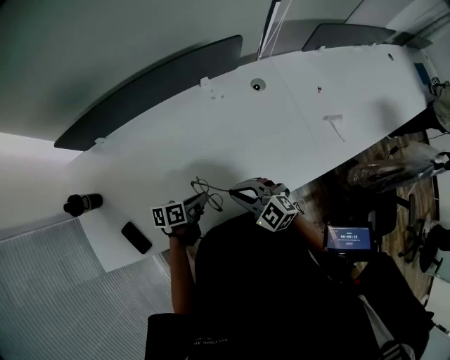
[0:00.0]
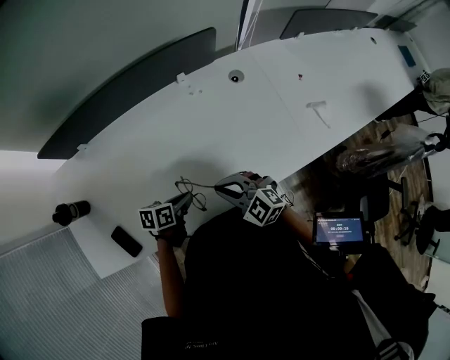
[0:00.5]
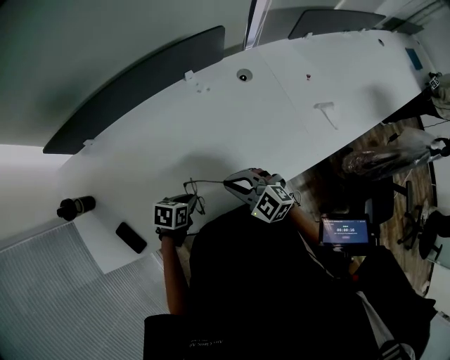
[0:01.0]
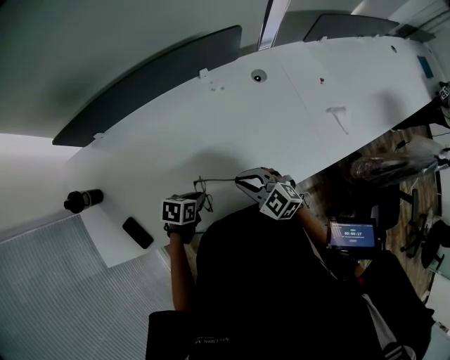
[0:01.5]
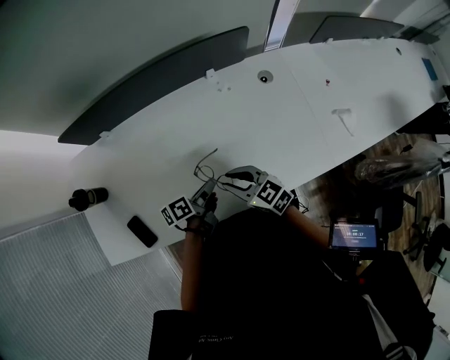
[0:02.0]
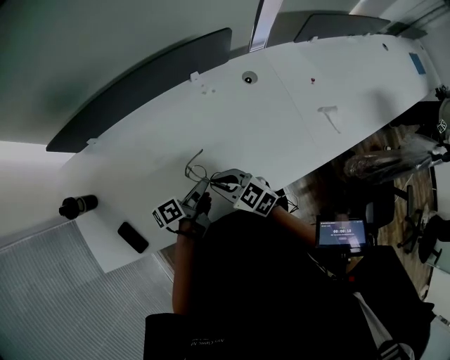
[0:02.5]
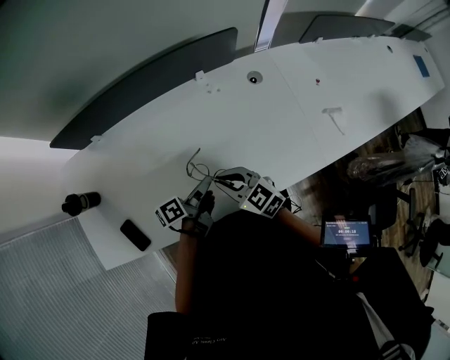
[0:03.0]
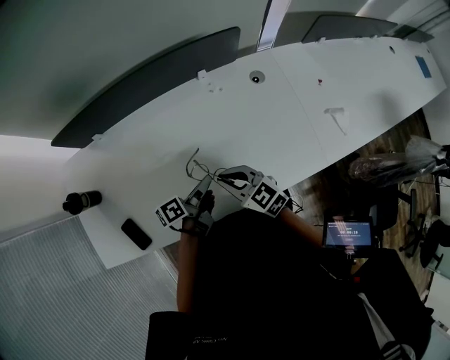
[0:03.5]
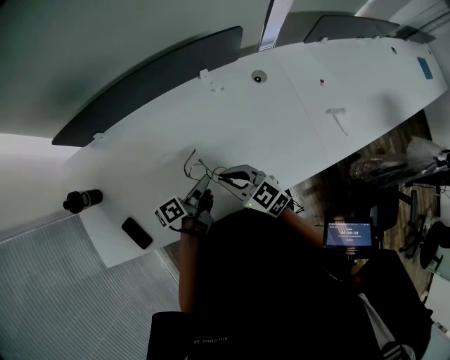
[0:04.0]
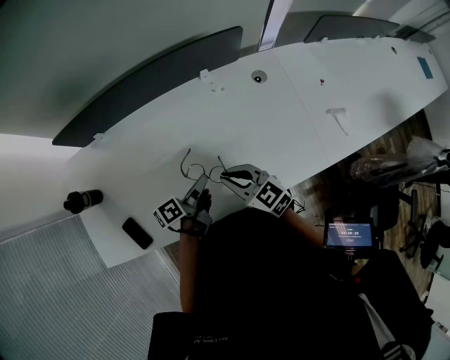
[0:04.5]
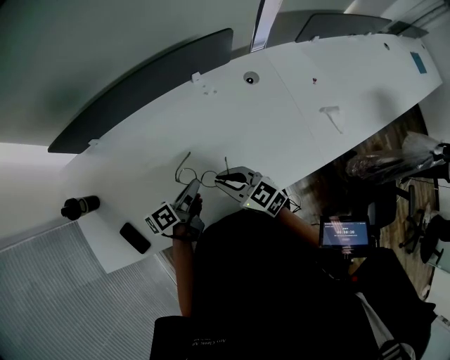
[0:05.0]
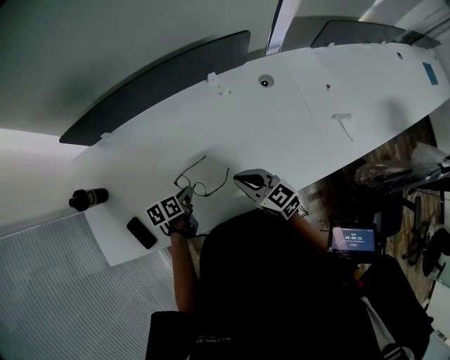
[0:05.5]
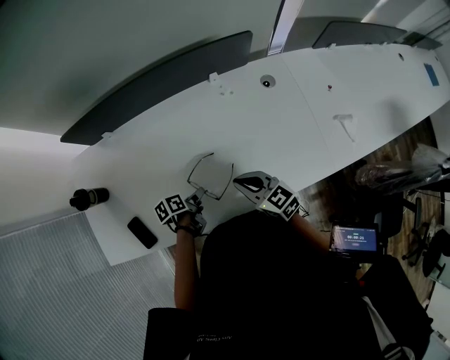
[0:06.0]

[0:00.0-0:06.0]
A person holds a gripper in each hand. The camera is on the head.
0:00.0 to 0:02.0: The right gripper rotates roughly 30 degrees.

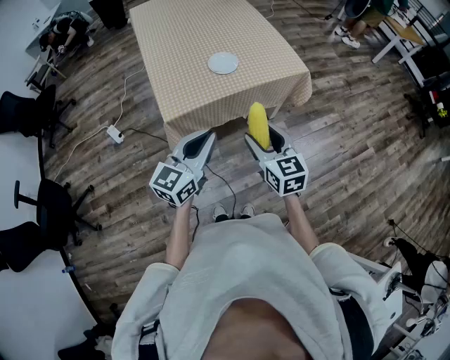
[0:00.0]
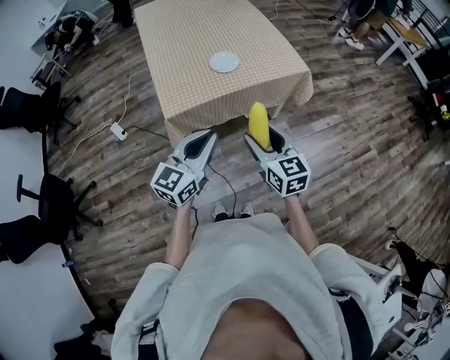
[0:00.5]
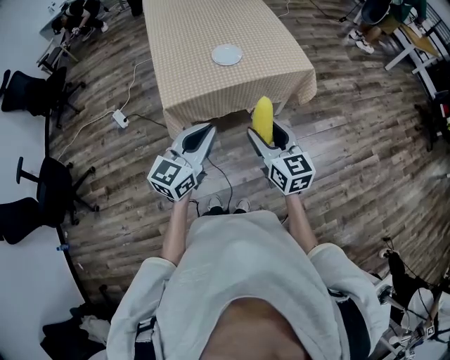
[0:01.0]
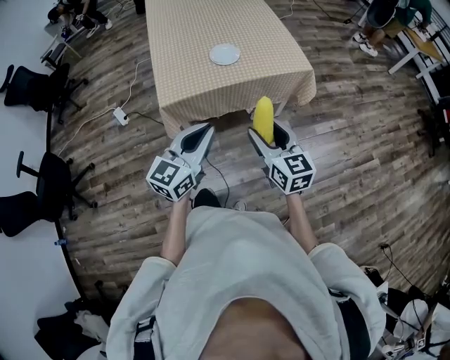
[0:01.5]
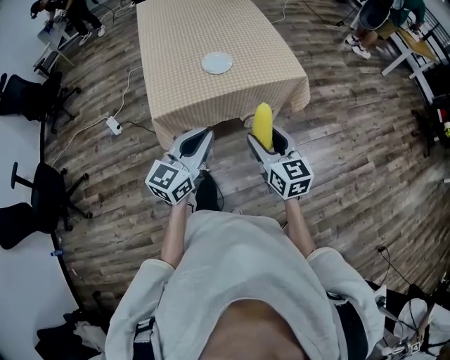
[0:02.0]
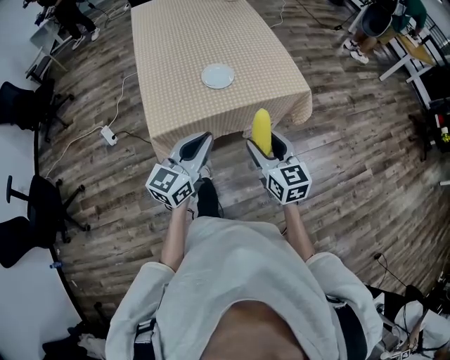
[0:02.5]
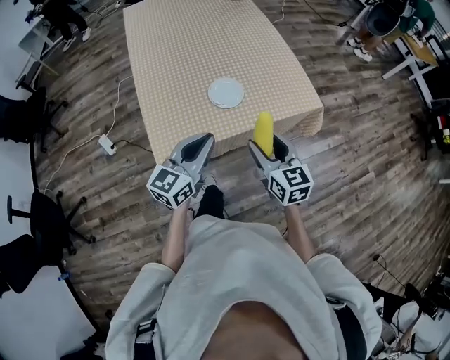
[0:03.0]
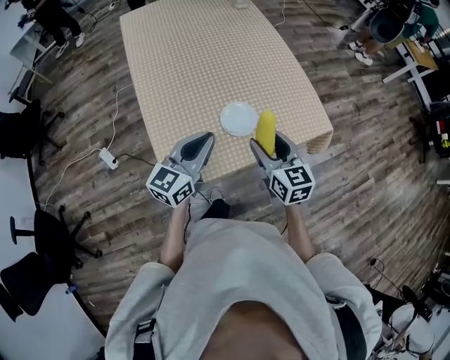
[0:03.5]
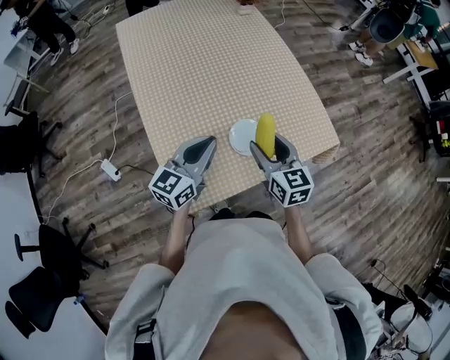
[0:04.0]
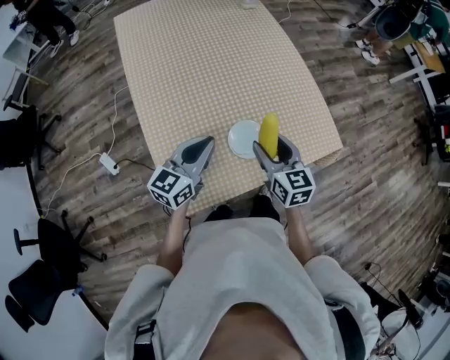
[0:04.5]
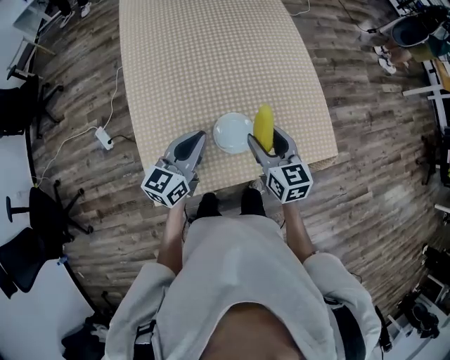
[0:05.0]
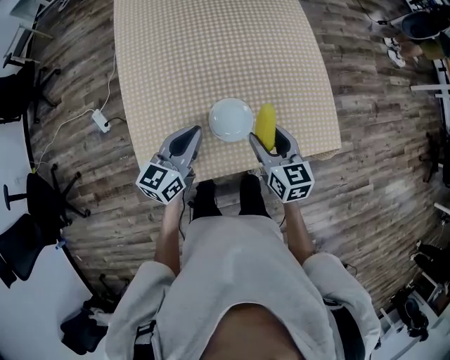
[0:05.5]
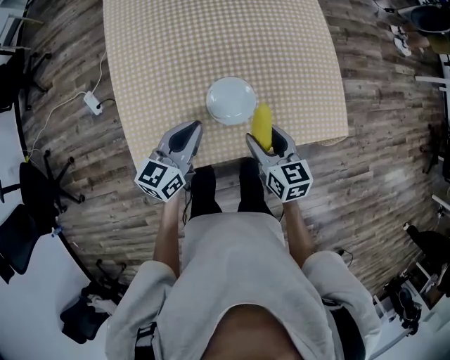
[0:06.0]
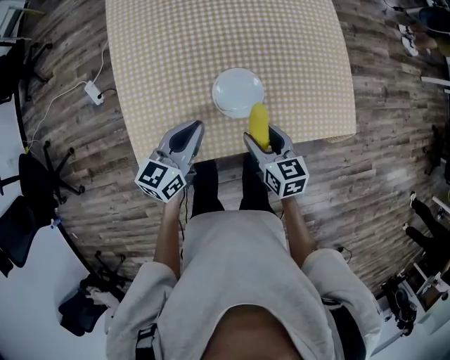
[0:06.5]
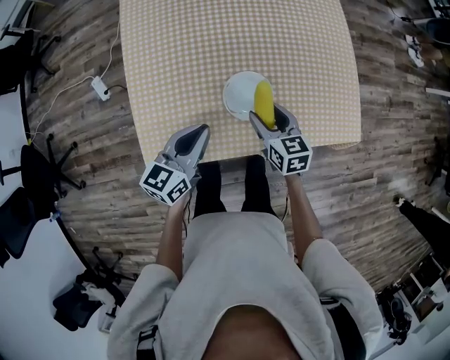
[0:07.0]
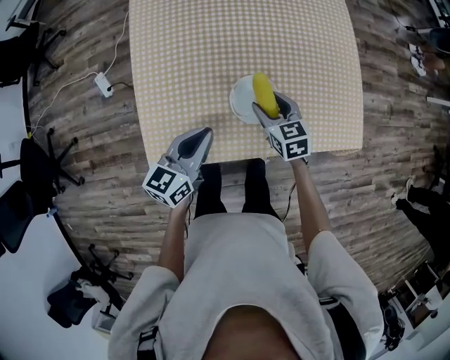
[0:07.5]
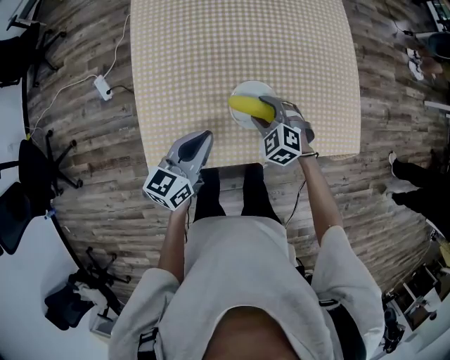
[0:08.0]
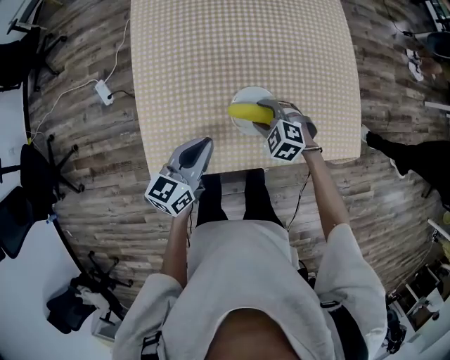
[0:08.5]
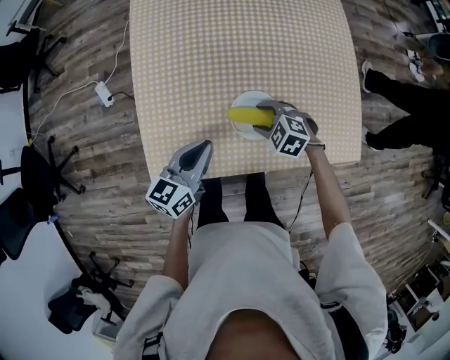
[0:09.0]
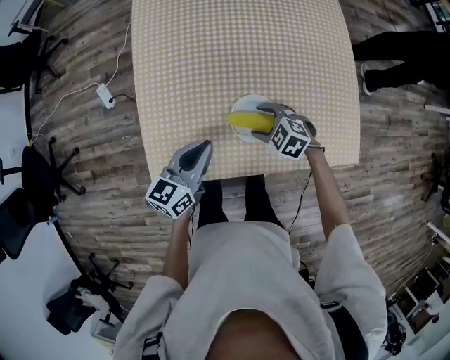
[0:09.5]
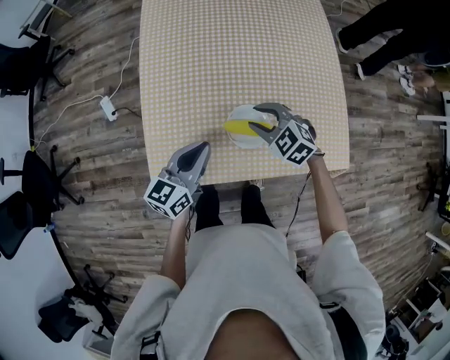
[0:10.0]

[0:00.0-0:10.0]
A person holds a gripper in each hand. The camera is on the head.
0:00.0 to 0:02.0: The grippers both shift to the right by about 10 cm.
0:02.0 to 0:04.0: The pair of grippers is taken forward and to the left, approximately 50 cm.
0:04.0 to 0:06.0: Both grippers travel together downward and to the right, about 15 cm. The right gripper turns by some 20 degrees. The left gripper swivels roughly 20 degrees.
0:06.0 to 0:08.0: The right gripper moves downward, forward and to the left, about 15 cm, and rotates around the line of its fingers by roughly 60 degrees, counterclockwise from behind.
0:08.0 to 0:10.0: The right gripper is displaced upward by about 10 cm.

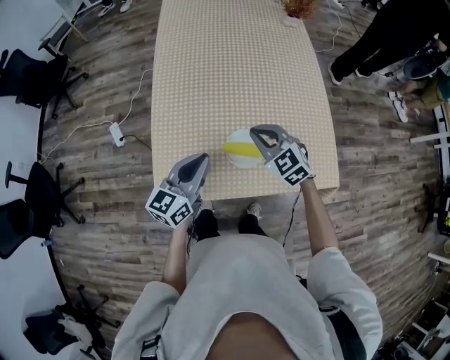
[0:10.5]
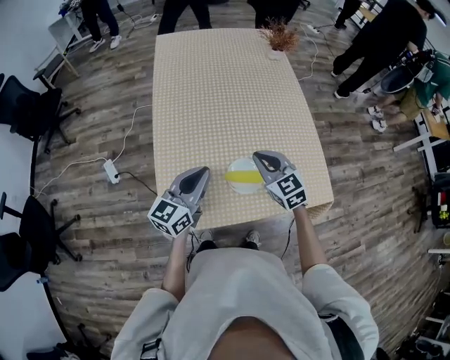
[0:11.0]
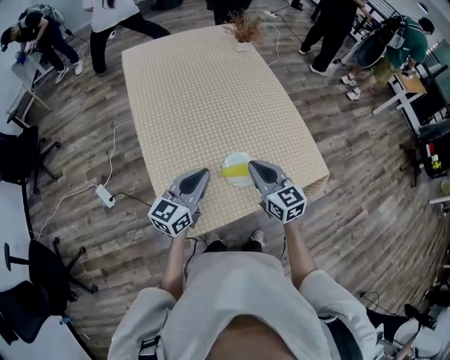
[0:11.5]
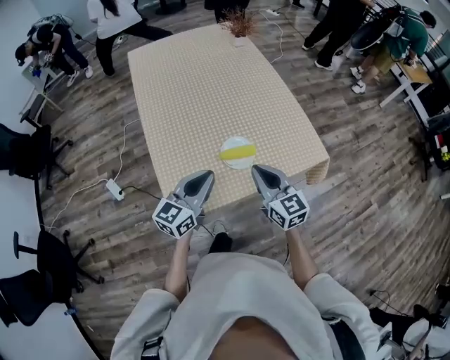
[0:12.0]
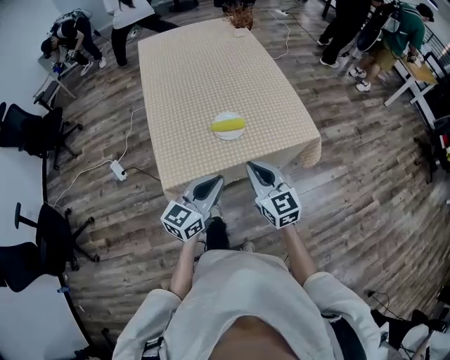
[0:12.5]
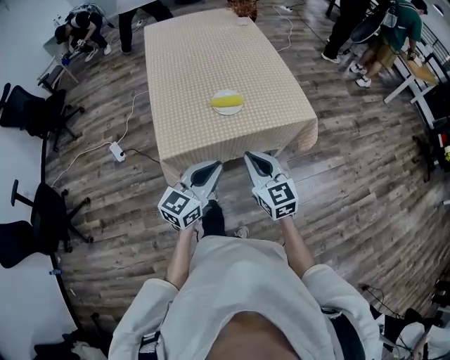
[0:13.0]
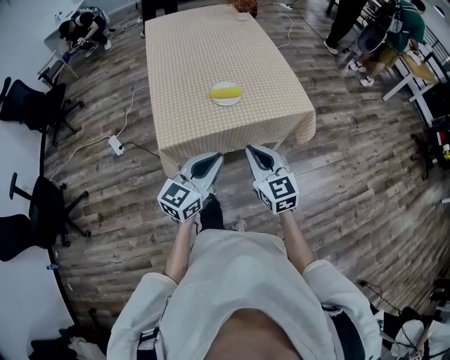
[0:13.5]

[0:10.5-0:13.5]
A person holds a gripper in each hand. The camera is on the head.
0:10.5 to 0:12.0: The right gripper heads backward and upward, covering about 20 cm, and swivels about 50 degrees. Meanwhile the left gripper moves backward, approximately 5 cm, and changes its angle by approximately 20 degrees.
0:12.0 to 0:13.5: The right gripper heads backward, covering about 25 cm. Meanwhile the left gripper heads backward and to the right, covering roughly 30 cm.

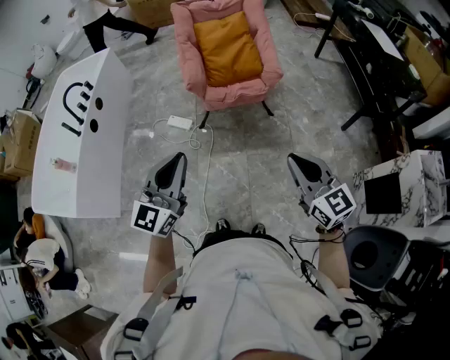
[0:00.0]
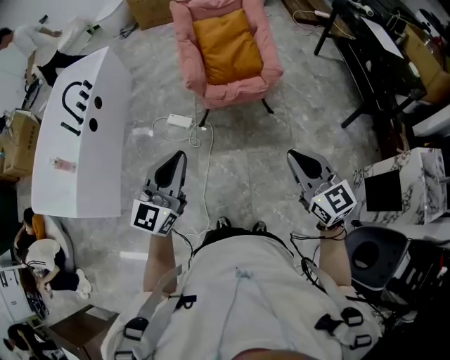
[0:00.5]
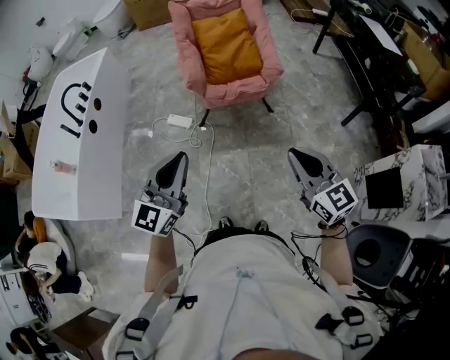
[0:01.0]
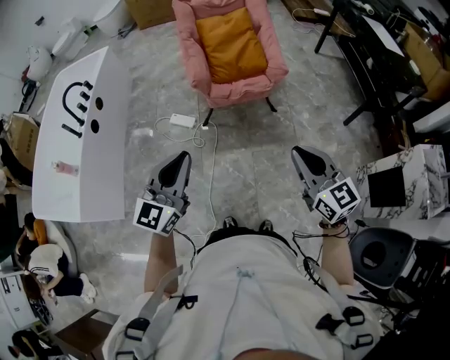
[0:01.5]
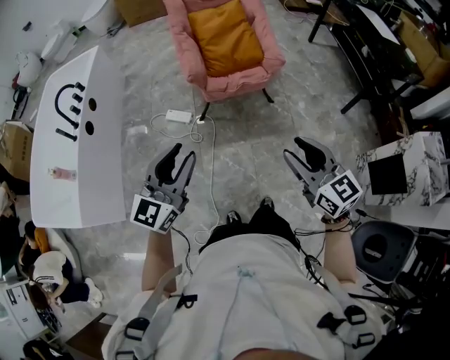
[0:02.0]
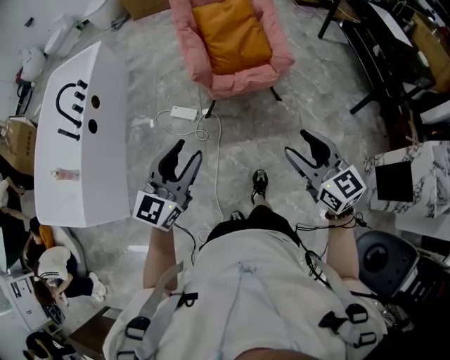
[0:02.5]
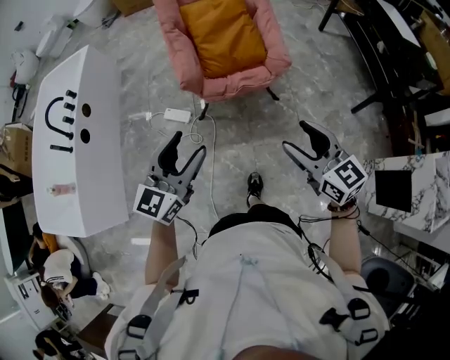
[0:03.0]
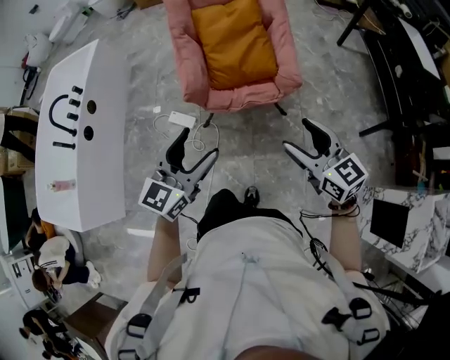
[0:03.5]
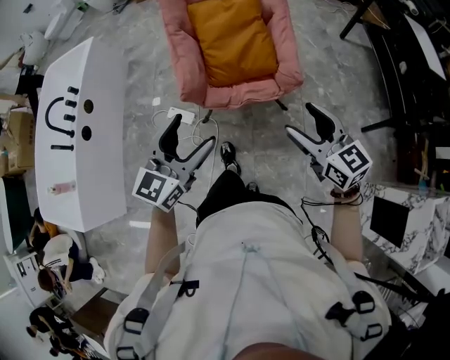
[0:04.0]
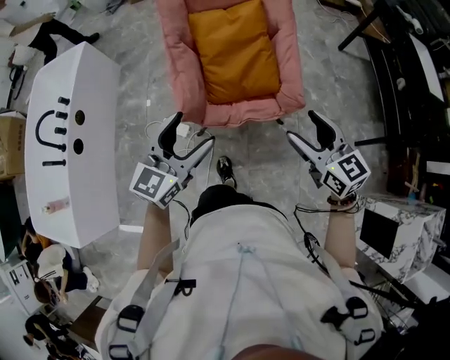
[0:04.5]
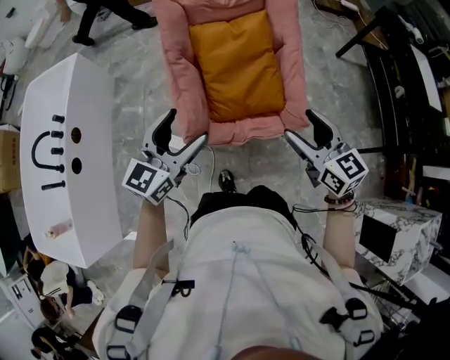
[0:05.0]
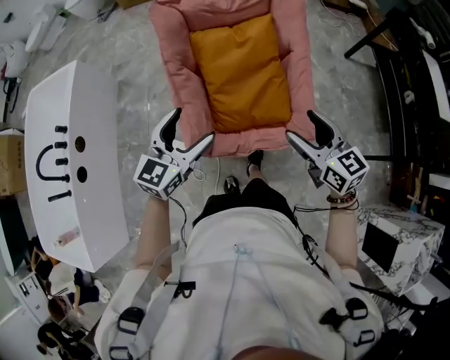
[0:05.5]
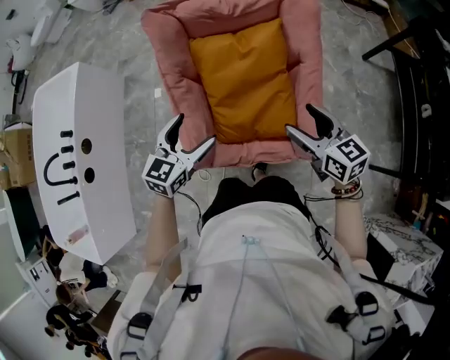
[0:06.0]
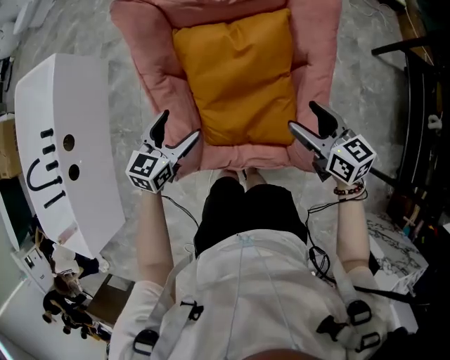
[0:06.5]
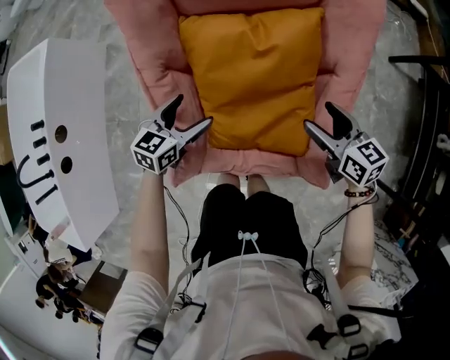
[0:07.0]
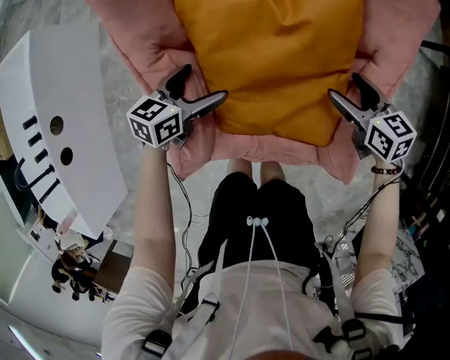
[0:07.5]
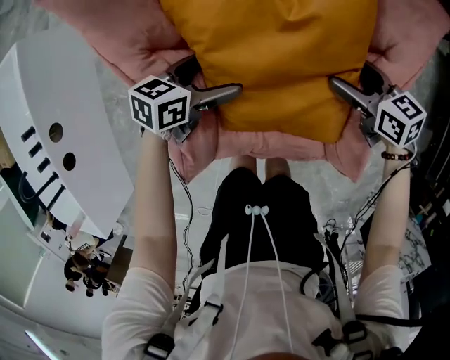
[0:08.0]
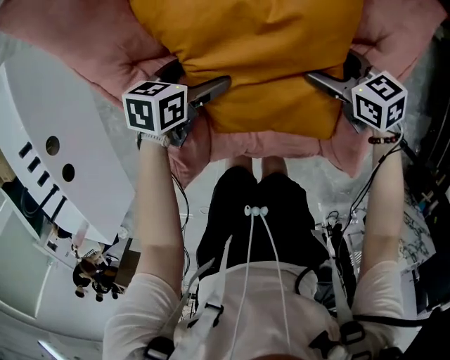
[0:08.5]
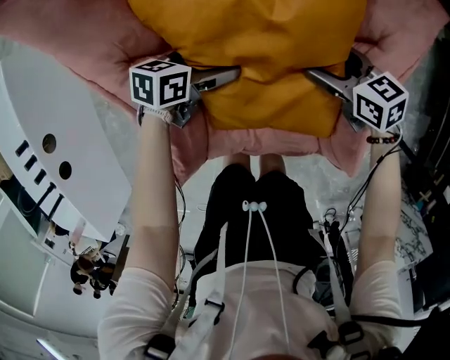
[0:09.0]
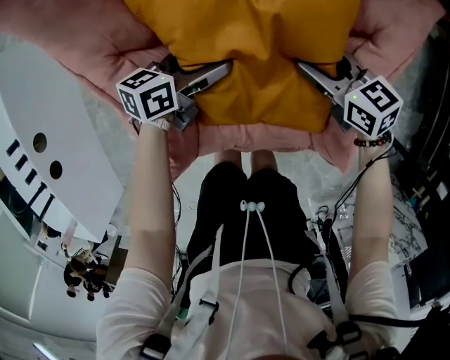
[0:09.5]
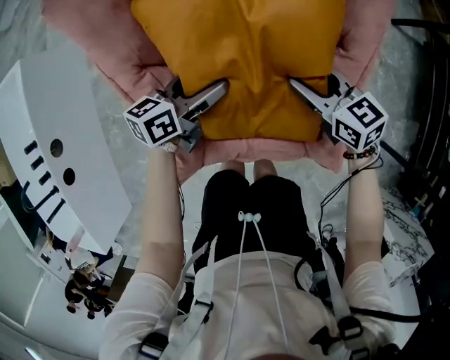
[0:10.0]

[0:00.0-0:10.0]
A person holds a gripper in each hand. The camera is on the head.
0:00.0 to 0:02.0: Both grippers move to the left, approximately 5 cm. The right gripper opens its fingers.
0:02.0 to 0:04.0: The right gripper travels forward by about 35 cm, and opens its fingers, while the left gripper heads forward and to the right, covering about 35 cm, and opens its fingers.
0:04.0 to 0:06.0: The pair of grippers is taken forward, roughly 40 cm.
0:06.0 to 0:08.0: The grippers both shift downward and forward by roughly 35 cm. The left gripper swivels about 40 degrees. The right gripper rotates roughly 20 degrees.
0:08.0 to 0:10.0: Both grippers travel together upward, roughly 10 cm. The right gripper closes its fingers.
